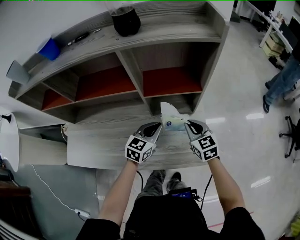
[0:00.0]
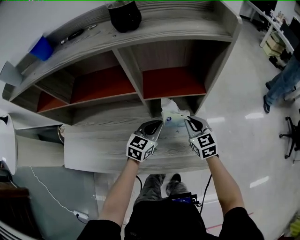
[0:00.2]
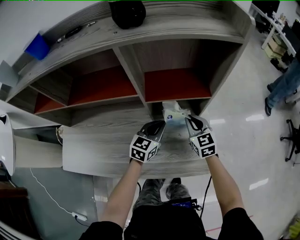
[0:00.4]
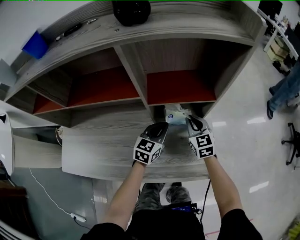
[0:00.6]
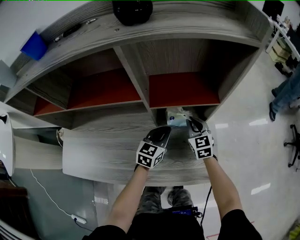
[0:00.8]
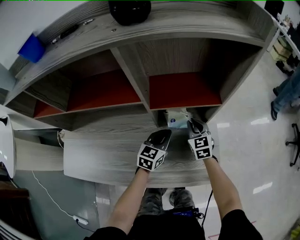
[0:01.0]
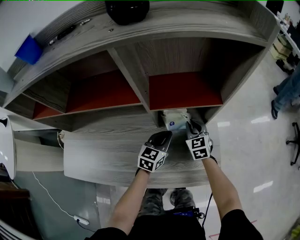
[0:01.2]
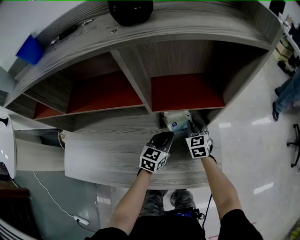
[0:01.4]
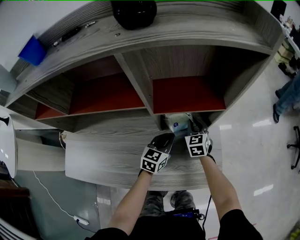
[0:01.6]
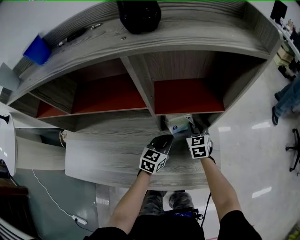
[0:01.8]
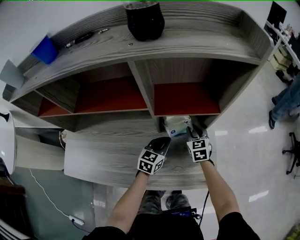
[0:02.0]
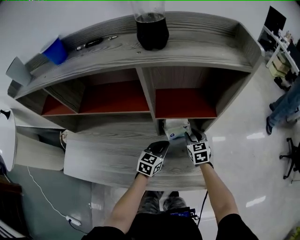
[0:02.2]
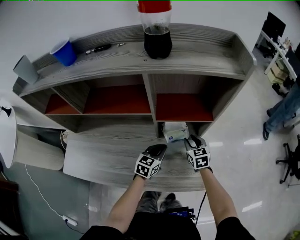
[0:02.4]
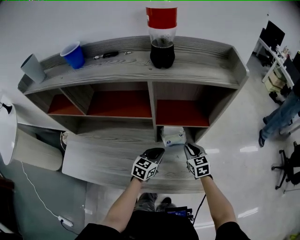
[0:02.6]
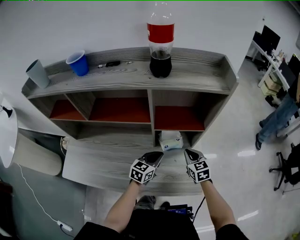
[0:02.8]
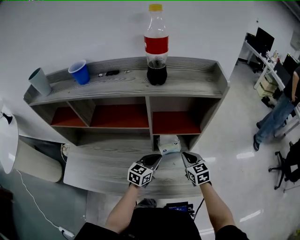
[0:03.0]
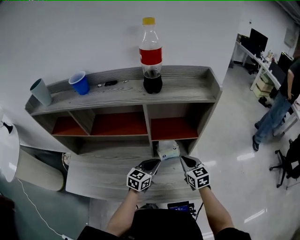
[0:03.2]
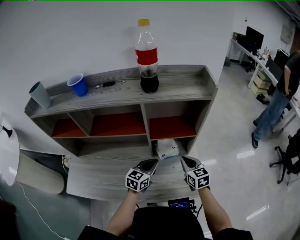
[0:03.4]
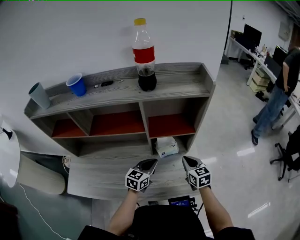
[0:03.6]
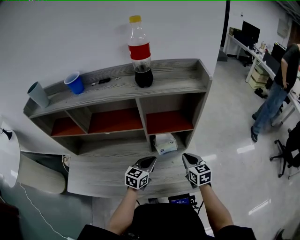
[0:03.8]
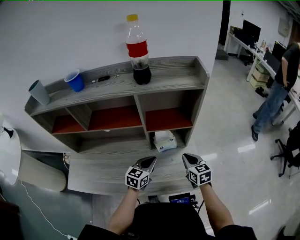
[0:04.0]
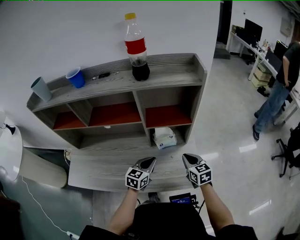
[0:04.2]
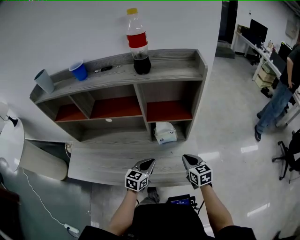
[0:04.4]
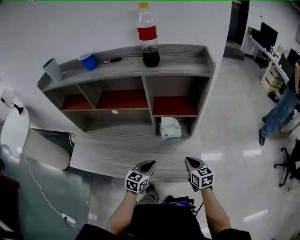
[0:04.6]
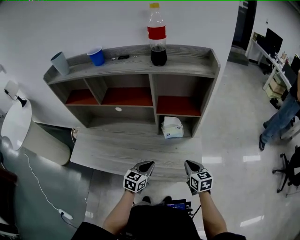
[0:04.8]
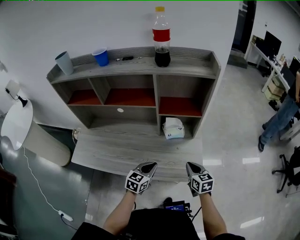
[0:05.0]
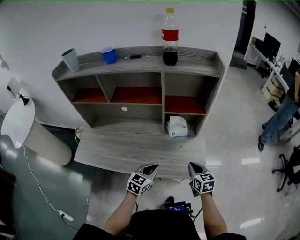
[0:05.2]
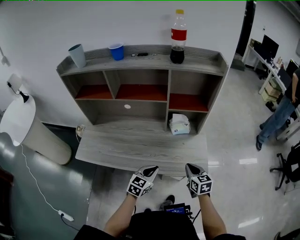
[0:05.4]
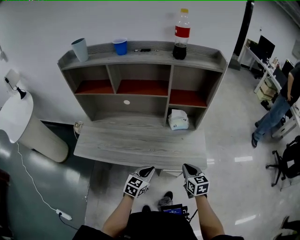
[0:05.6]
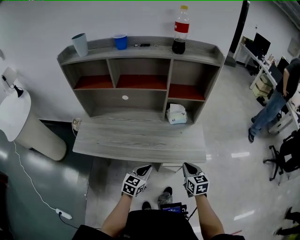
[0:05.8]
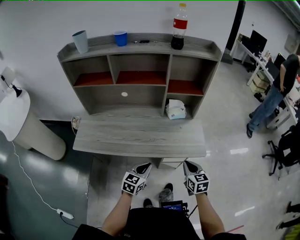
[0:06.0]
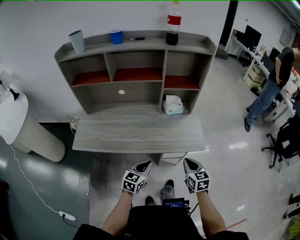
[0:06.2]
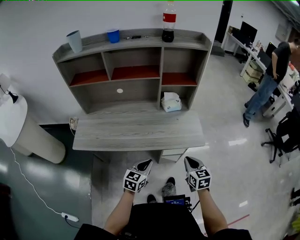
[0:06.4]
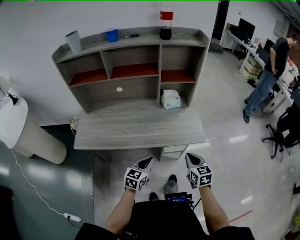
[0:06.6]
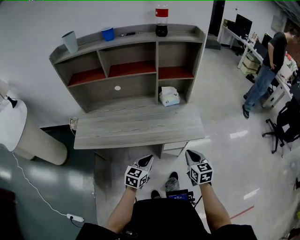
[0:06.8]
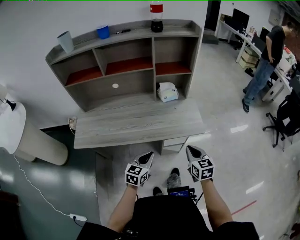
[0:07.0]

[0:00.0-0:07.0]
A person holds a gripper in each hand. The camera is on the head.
0:00.0 to 0:01.4: The two grippers go some 15 cm downward and forward.
0:01.4 to 0:02.8: The left gripper heads upward, covering approximately 10 cm. Meanwhile the right gripper shifts some 15 cm upward and backward, and opens, then closes again.
0:02.8 to 0:04.2: Both grippers travel together backward, some 5 cm.
0:04.2 to 0:05.6: Both grippers travel together backward, approximately 20 cm.
0:05.6 to 0:07.0: Both grippers travel together backward, roughly 10 cm.

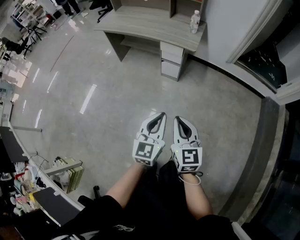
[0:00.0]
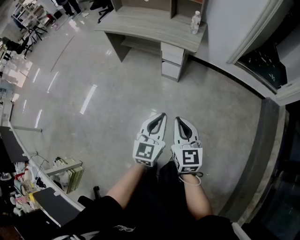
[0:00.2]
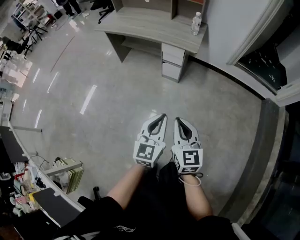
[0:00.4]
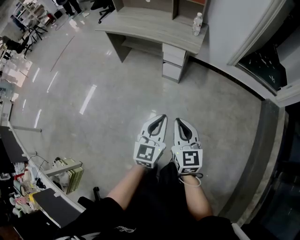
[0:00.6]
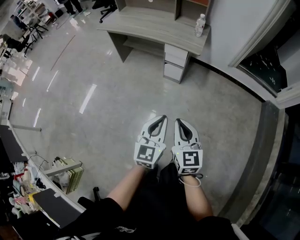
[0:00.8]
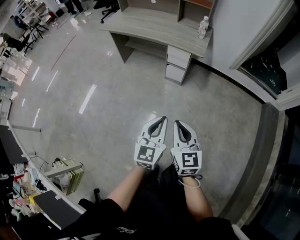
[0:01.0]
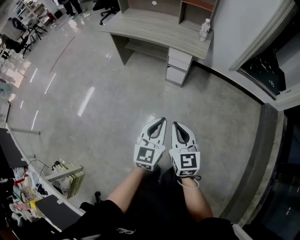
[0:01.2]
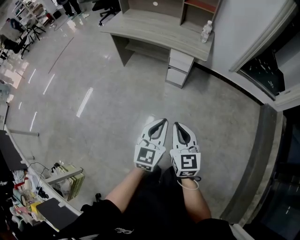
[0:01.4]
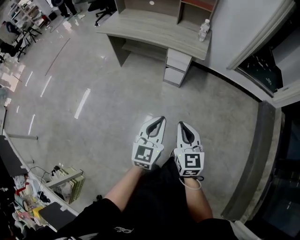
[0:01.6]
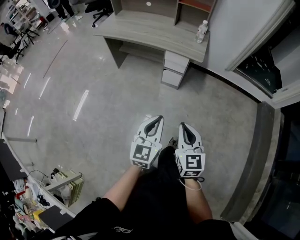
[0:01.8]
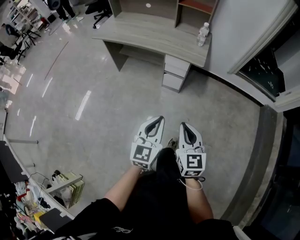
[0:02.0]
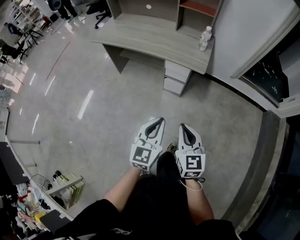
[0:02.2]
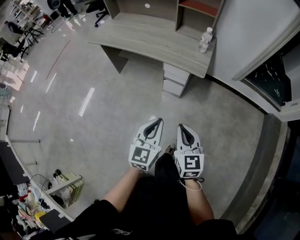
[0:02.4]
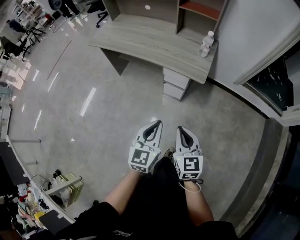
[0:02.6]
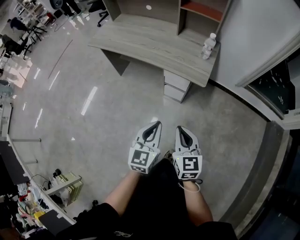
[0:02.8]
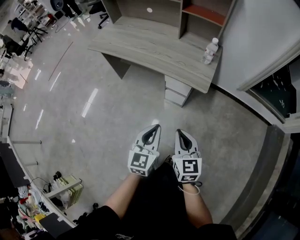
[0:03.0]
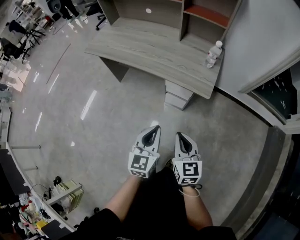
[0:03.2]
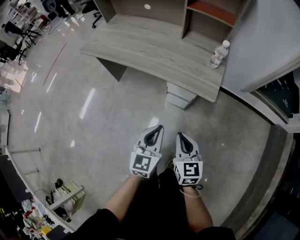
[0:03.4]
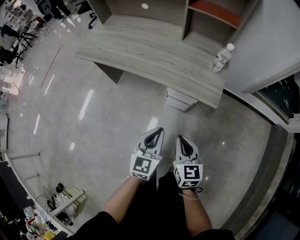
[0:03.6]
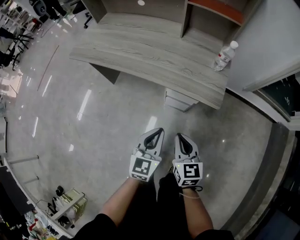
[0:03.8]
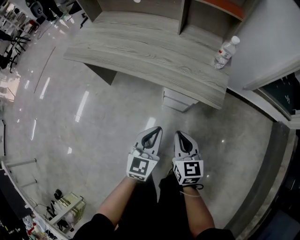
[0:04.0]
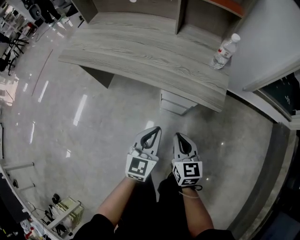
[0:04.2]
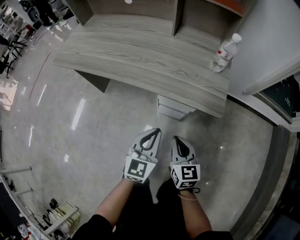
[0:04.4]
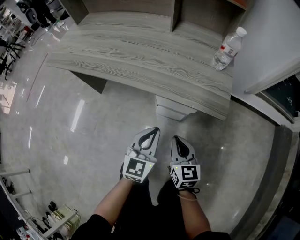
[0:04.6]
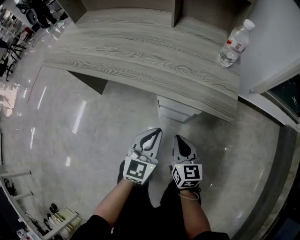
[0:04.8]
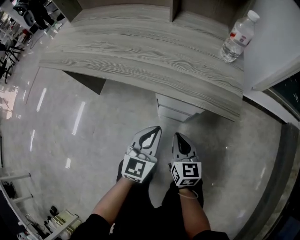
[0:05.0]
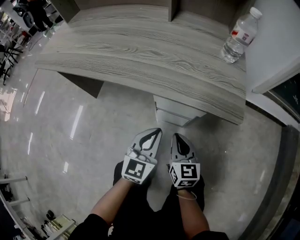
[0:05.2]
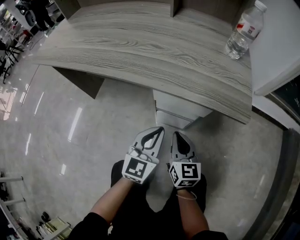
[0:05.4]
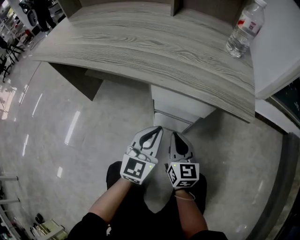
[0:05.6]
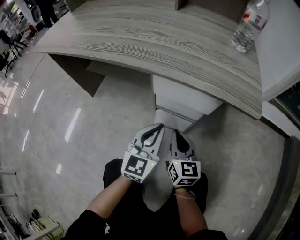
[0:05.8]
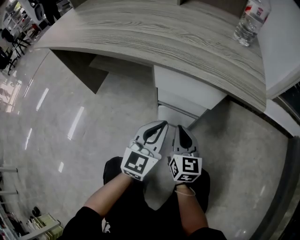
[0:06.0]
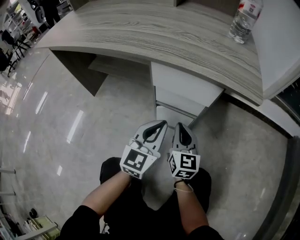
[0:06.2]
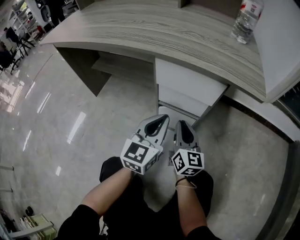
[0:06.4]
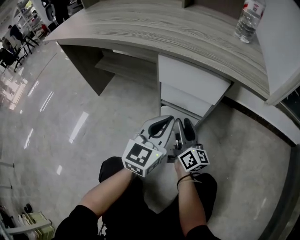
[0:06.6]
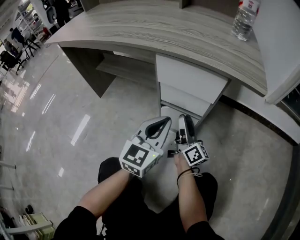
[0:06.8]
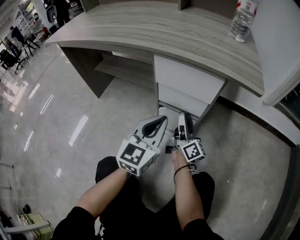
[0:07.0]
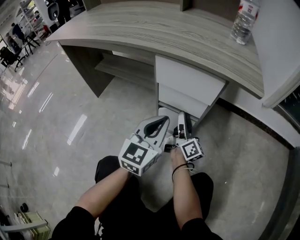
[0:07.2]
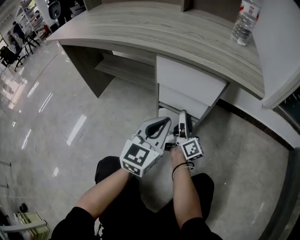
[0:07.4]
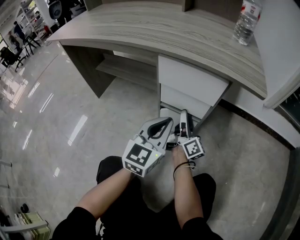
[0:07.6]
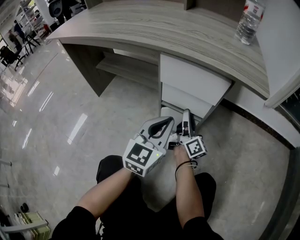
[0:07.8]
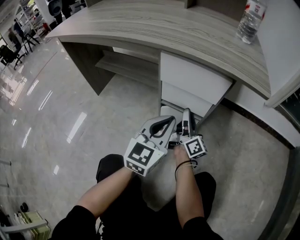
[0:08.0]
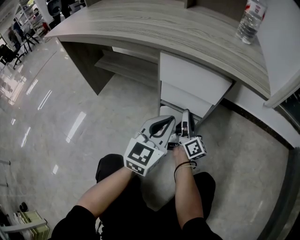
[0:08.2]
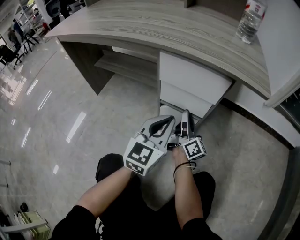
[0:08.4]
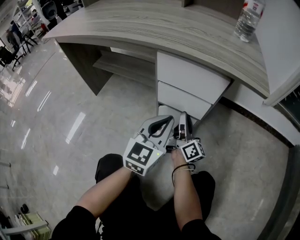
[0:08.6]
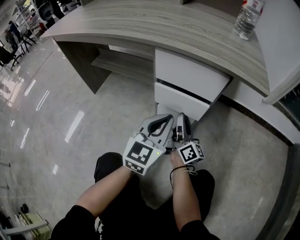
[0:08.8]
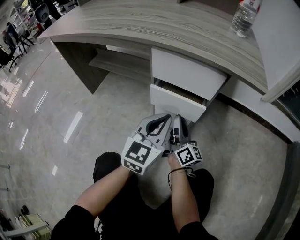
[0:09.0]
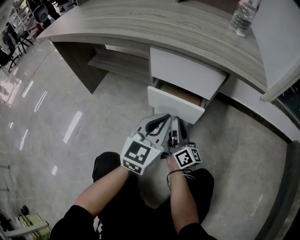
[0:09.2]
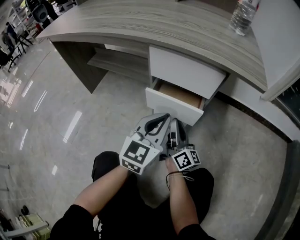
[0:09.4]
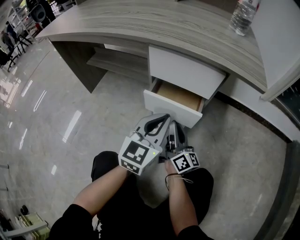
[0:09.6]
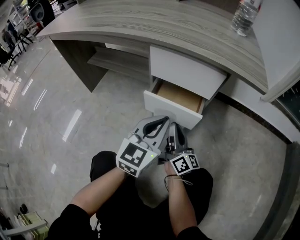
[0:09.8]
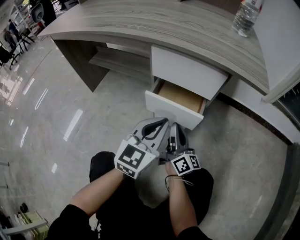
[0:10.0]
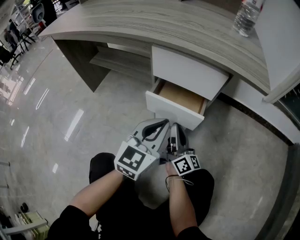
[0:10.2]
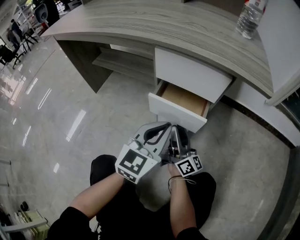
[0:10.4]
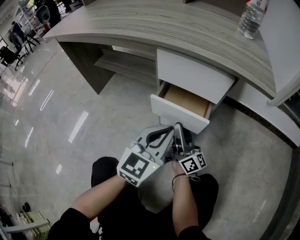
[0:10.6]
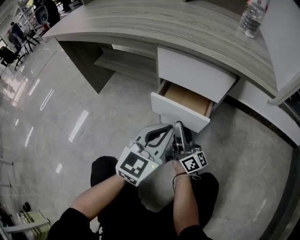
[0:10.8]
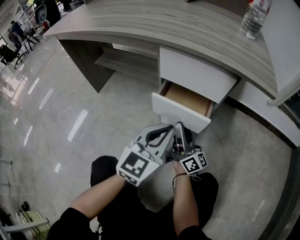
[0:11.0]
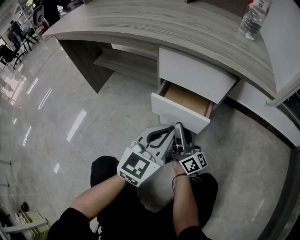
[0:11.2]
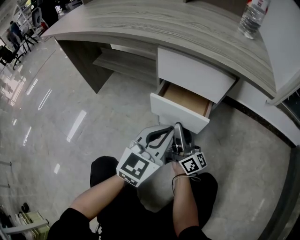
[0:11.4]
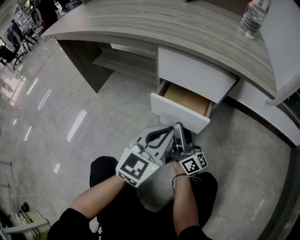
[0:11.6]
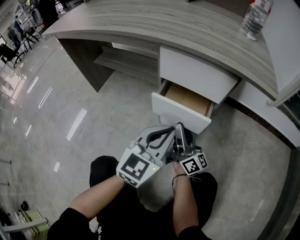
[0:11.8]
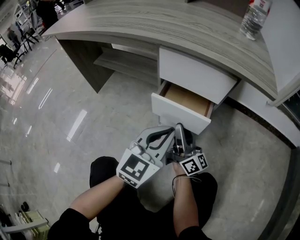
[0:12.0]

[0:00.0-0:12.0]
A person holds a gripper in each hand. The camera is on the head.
0:00.0 to 0:01.6: Both grippers move to the left, approximately 10 cm.
0:01.6 to 0:03.0: Both grippers move forward, some 25 cm.
0:03.0 to 0:04.4: The right gripper moves downward and forward, some 25 cm. The left gripper is displaced forward and downward by approximately 25 cm.
0:04.4 to 0:06.0: The right gripper heads downward and forward, covering approximately 25 cm. Meanwhile the left gripper goes roughly 20 cm downward.
0:06.0 to 0:07.6: The right gripper shifts some 10 cm forward and downward, twists approximately 50 degrees clockwise, seen from behind, and opens up.
0:07.6 to 0:09.0: The right gripper closes its fingers.
0:09.0 to 0:10.4: The right gripper opens.
0:10.4 to 0:12.0: The grippers move only a little.

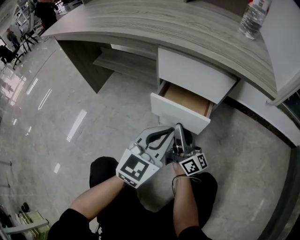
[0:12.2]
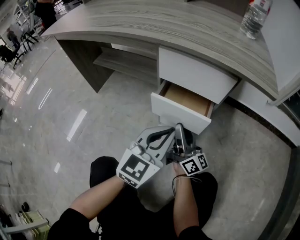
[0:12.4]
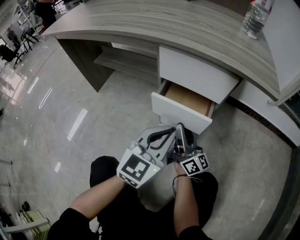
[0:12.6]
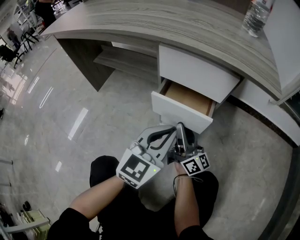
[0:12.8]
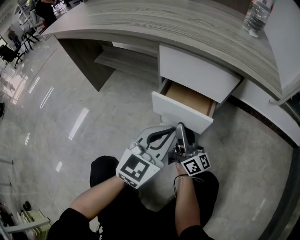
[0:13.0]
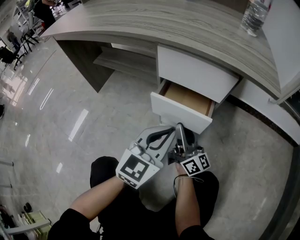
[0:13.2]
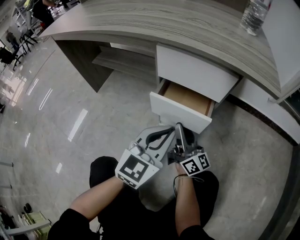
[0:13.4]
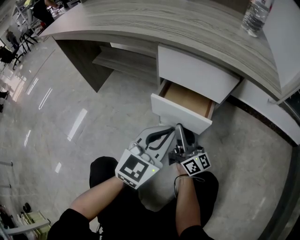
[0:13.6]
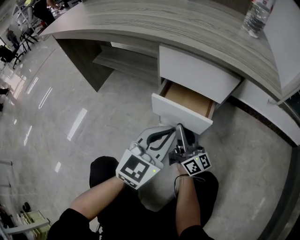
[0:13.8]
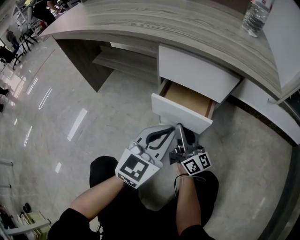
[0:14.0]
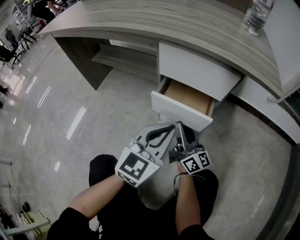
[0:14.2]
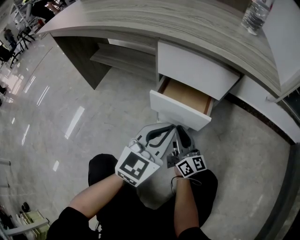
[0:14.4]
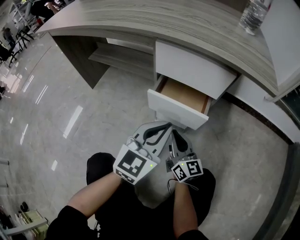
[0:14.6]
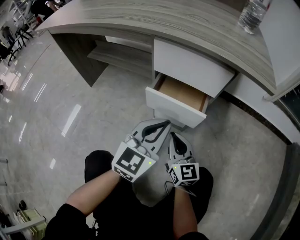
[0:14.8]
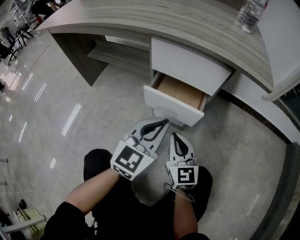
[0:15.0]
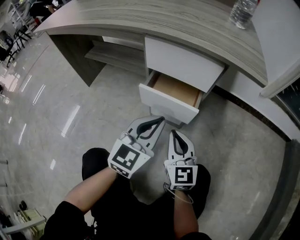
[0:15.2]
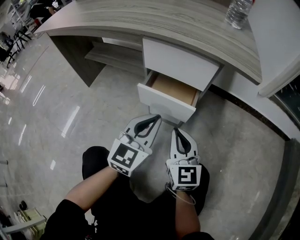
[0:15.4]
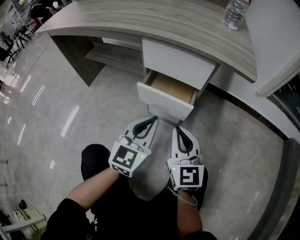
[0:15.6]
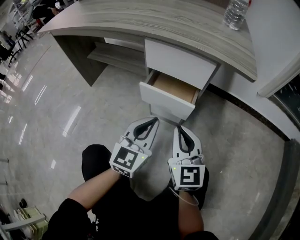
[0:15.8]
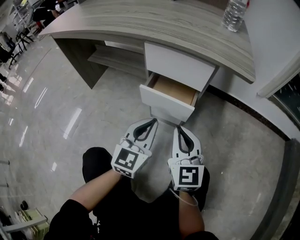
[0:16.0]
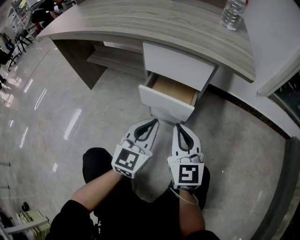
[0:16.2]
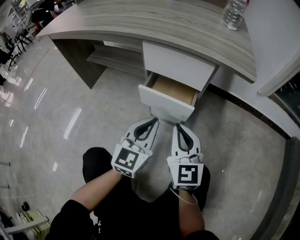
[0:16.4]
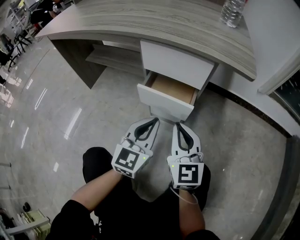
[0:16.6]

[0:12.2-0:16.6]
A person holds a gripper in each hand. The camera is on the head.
0:12.2 to 0:13.6: The grippers stay close to where they were, moving slightly.
0:13.6 to 0:15.2: The right gripper heads backward, covering some 5 cm, changes its angle by roughly 50 degrees, and closes.
0:15.2 to 0:16.6: The right gripper heads upward, covering approximately 5 cm.
